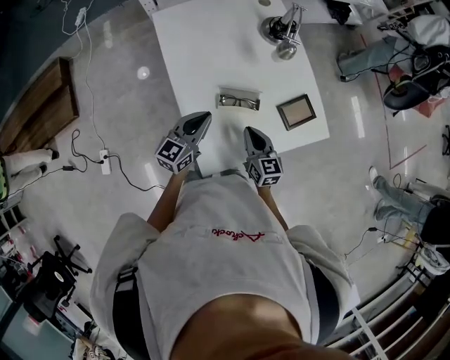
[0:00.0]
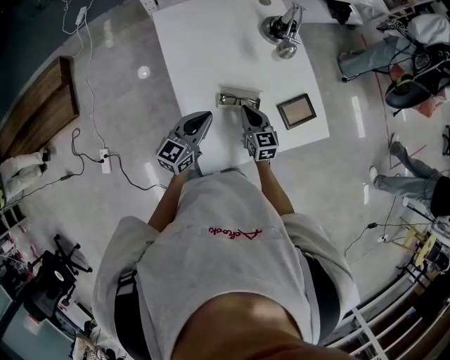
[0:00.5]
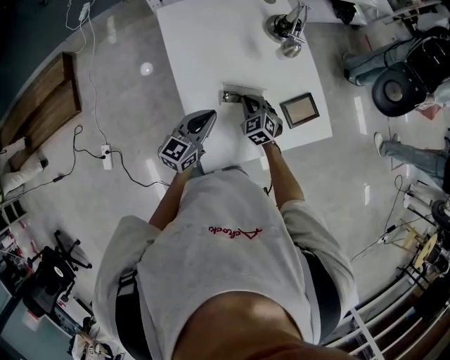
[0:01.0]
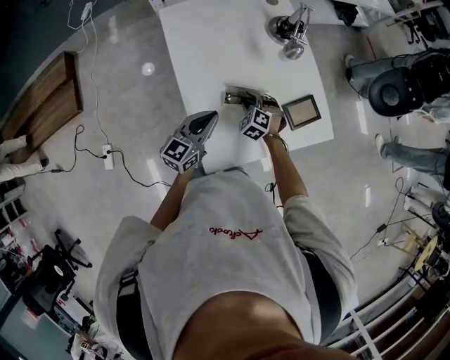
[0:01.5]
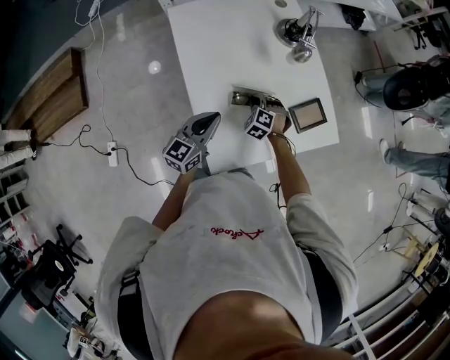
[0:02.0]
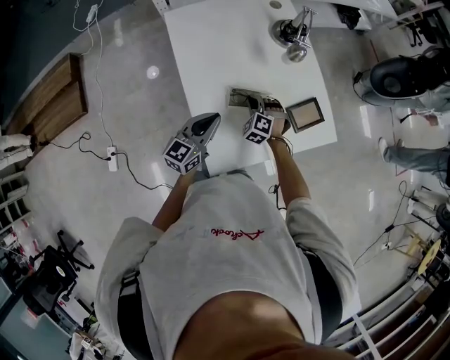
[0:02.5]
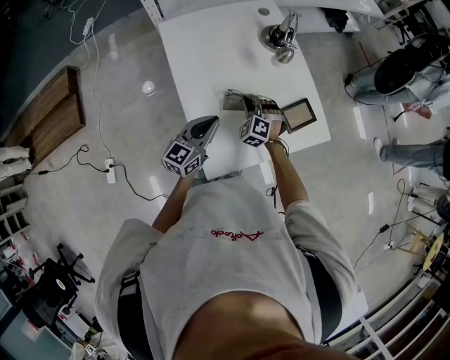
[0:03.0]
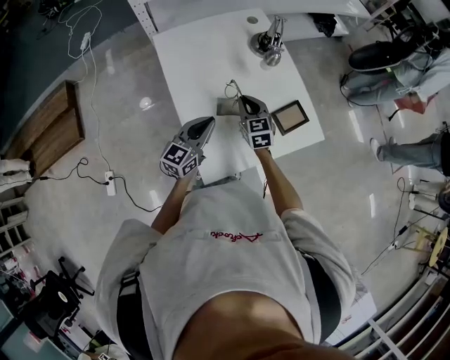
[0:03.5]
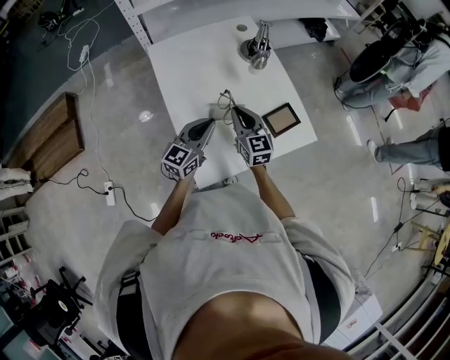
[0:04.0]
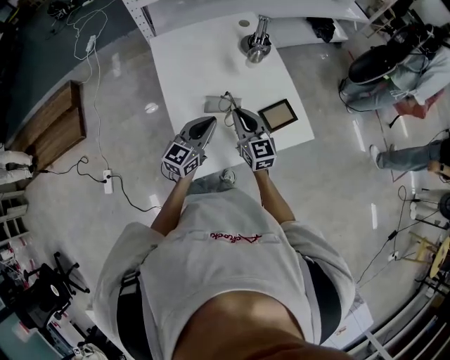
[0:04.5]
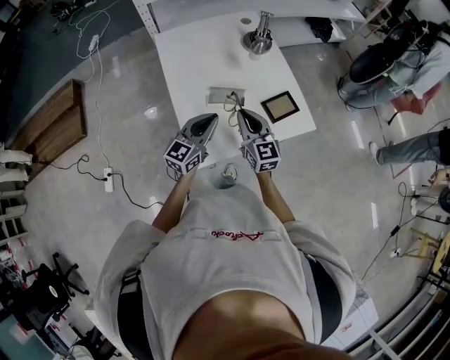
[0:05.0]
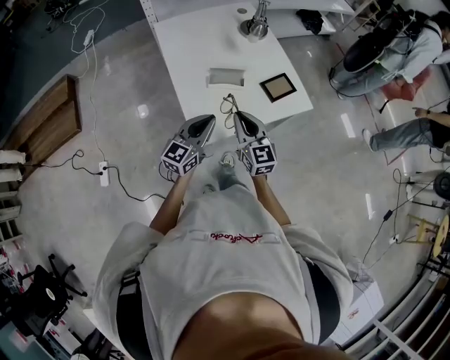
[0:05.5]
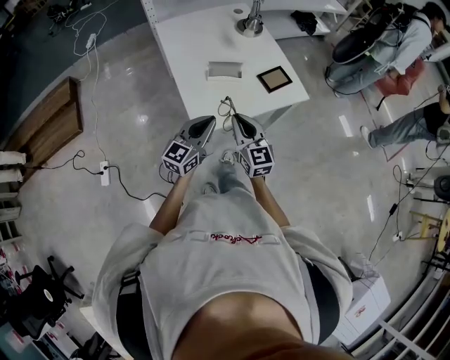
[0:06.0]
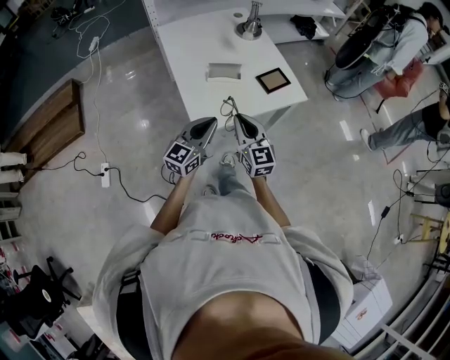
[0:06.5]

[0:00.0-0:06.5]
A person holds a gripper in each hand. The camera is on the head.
0:00.0 to 0:02.0: The right gripper travels downward and forward by approximately 15 cm, rotates around the line of its fingers by about 60 degrees, counterclockwise from behind, and opens, then closes once more.
0:02.0 to 0:04.5: The left gripper travels to the right by approximately 10 cm. Meanwhile the right gripper shifts about 20 cm upward, and tips its fingers upward by approximately 50 degrees.
0:04.5 to 0:06.5: Both grippers travel together backward, approximately 20 cm.

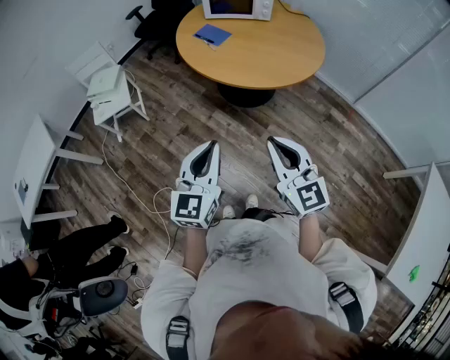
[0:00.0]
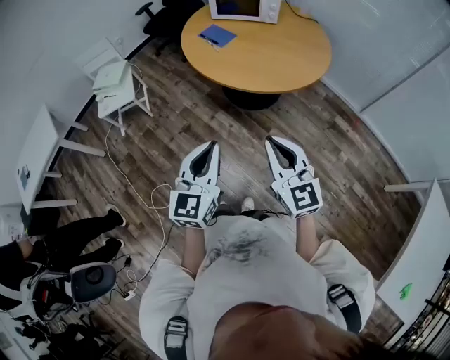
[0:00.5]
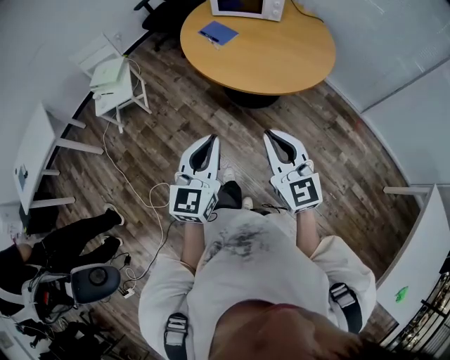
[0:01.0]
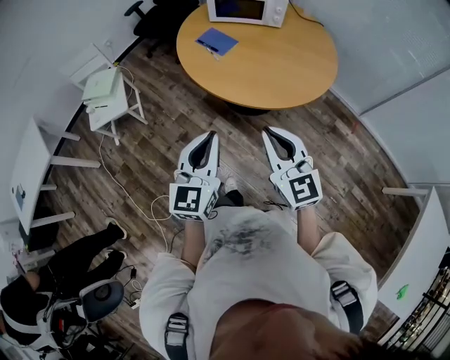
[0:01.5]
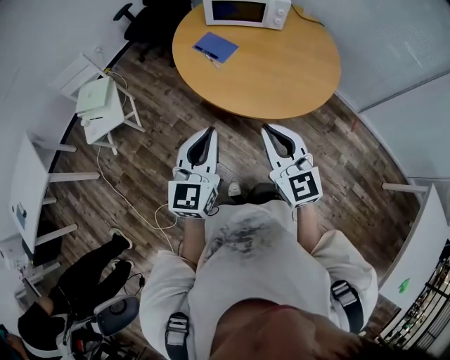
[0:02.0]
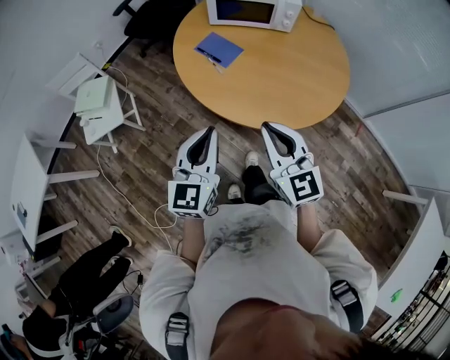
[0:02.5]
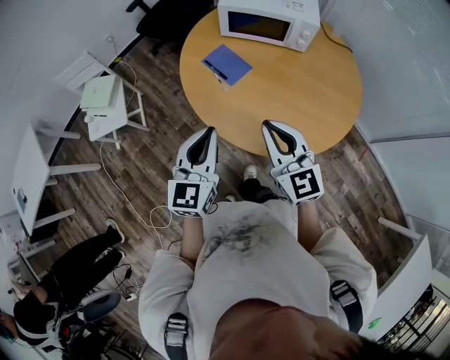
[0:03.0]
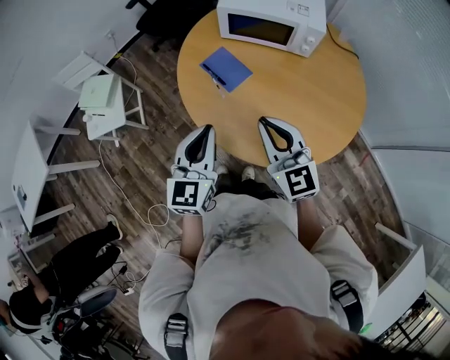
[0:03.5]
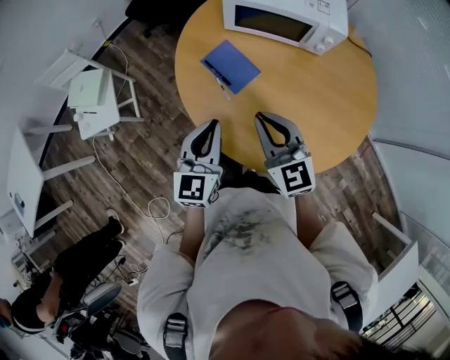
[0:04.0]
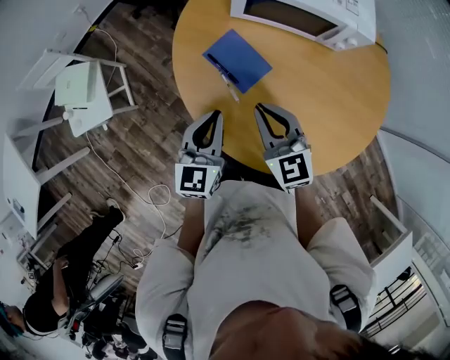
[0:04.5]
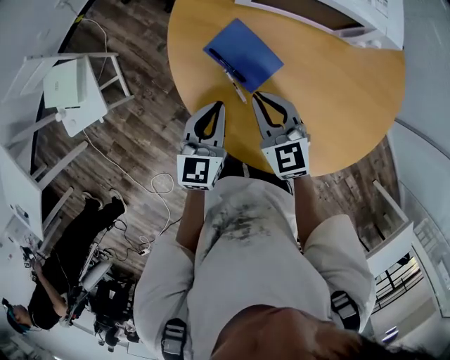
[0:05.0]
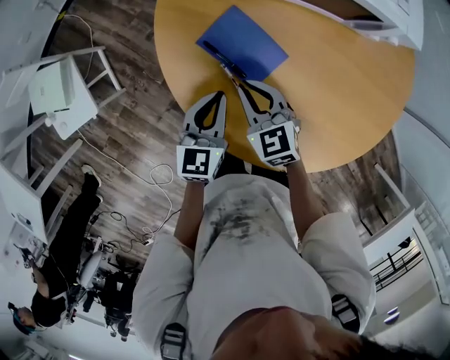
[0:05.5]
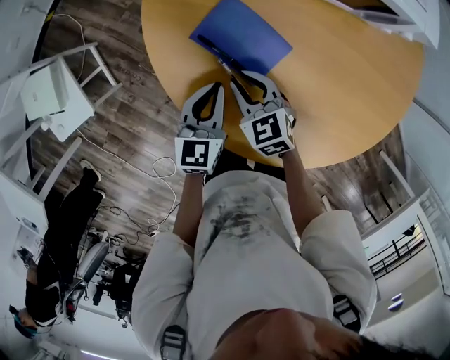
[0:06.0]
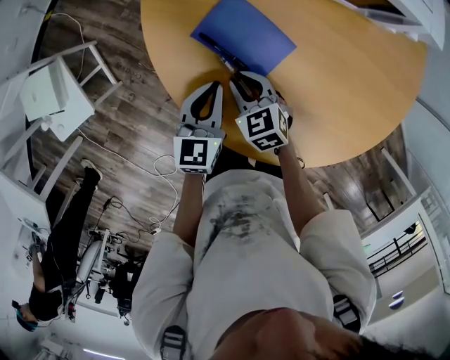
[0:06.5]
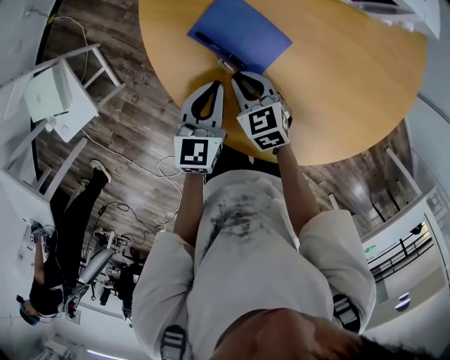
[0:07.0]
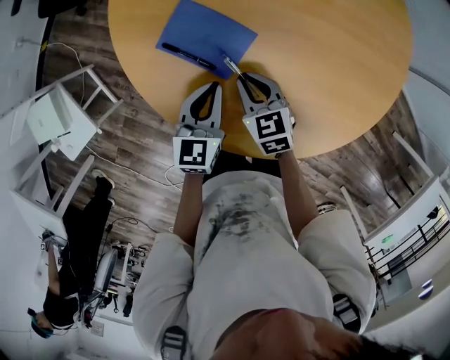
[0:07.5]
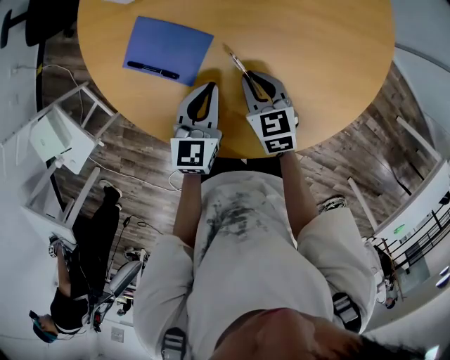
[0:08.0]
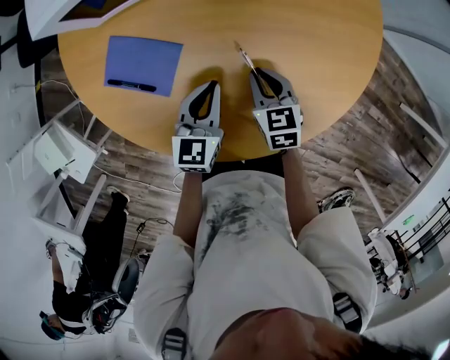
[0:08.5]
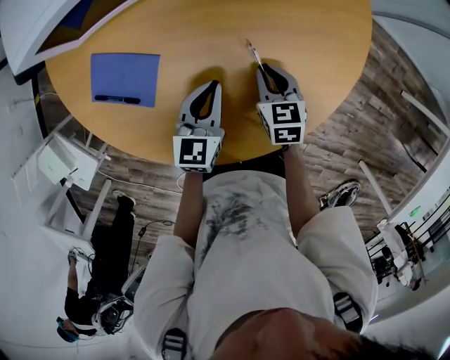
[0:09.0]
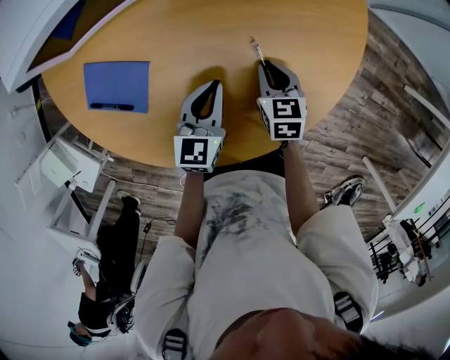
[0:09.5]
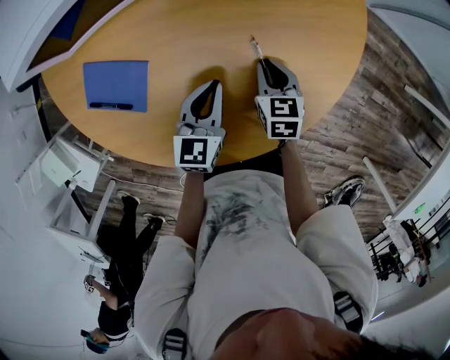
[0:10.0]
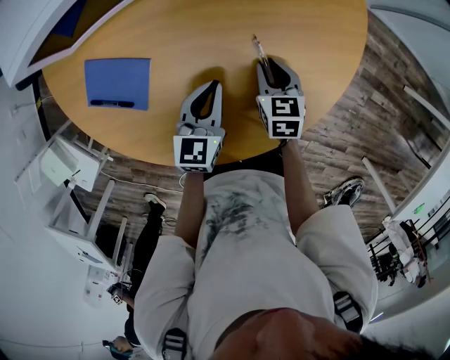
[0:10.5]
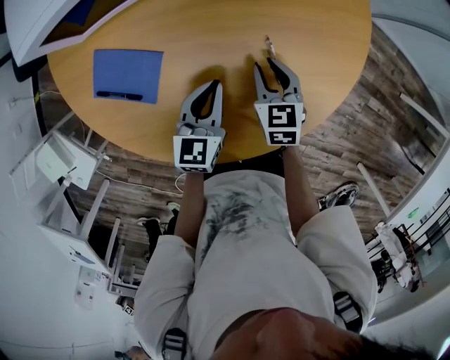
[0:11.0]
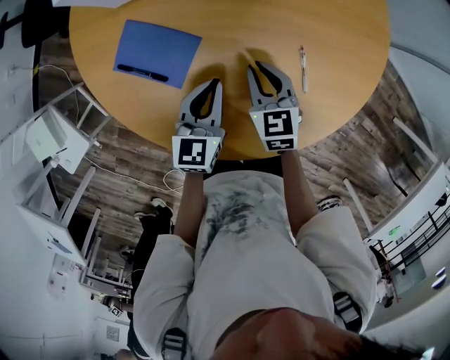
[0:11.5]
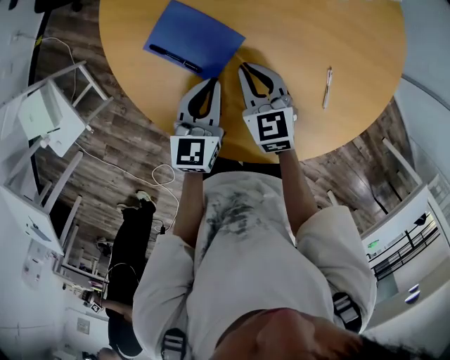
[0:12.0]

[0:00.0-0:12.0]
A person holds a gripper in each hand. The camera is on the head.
0:00.0 to 0:02.0: Both grippers travel together forward, about 25 cm.
0:02.0 to 0:04.0: The two grippers go approximately 35 cm forward.
0:04.0 to 0:06.0: Both grippers travel together downward and forward, approximately 30 cm. The right gripper tilts its fingers roughly 30 degrees downward. The left gripper swivels some 20 degrees.
0:06.0 to 0:08.0: Both grippers move to the right, some 15 cm. The right gripper rotates about 30 degrees.
0:08.0 to 0:10.0: The grippers both shift to the right by roughly 20 cm. The right gripper swivels approximately 20 degrees.
0:10.0 to 0:12.0: The right gripper ends up some 30 cm from where it was, and swivels about 40 degrees. The left gripper ends up about 20 cm from where it was, and rotates some 20 degrees.

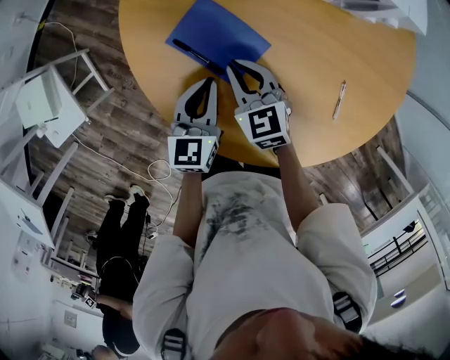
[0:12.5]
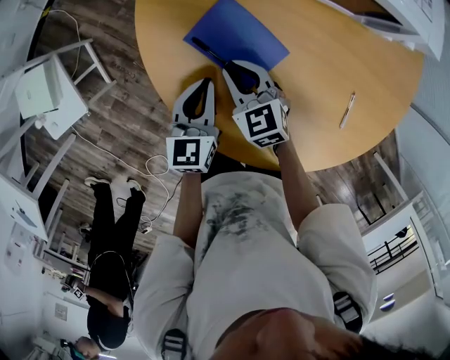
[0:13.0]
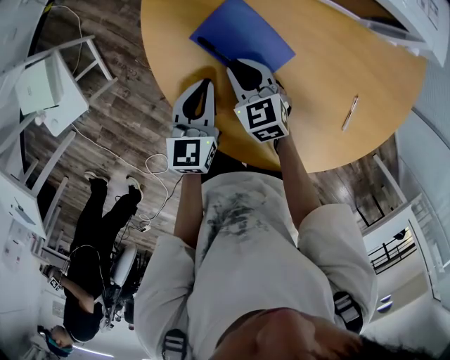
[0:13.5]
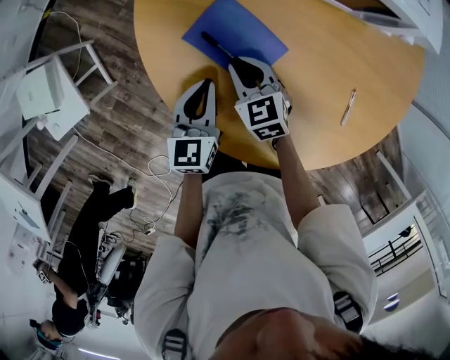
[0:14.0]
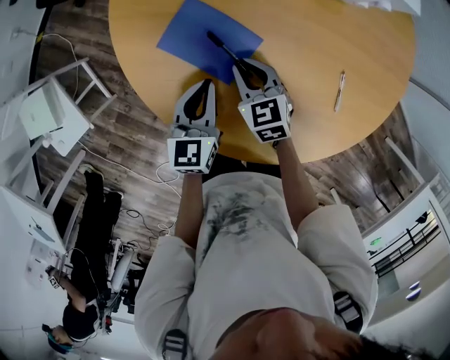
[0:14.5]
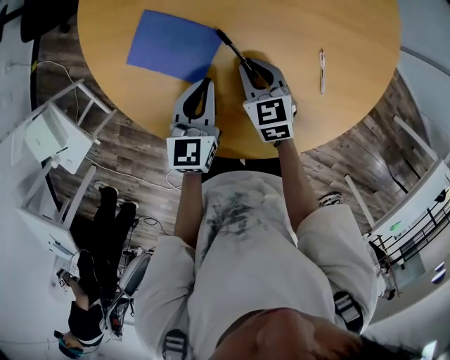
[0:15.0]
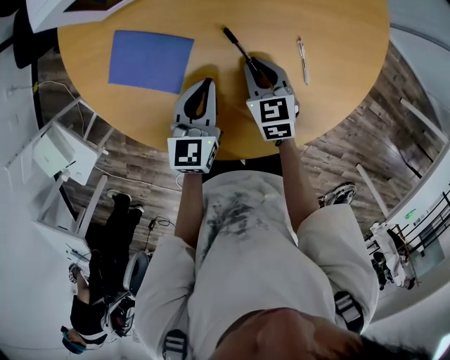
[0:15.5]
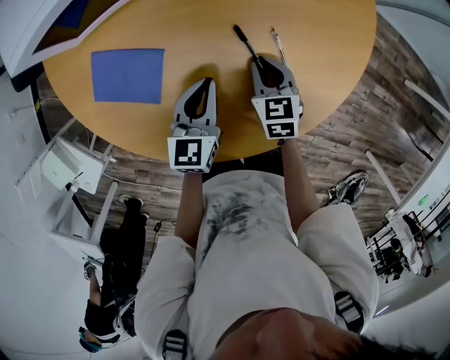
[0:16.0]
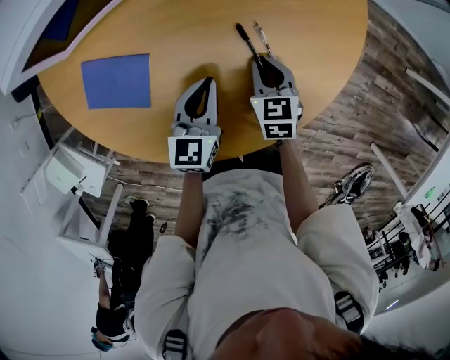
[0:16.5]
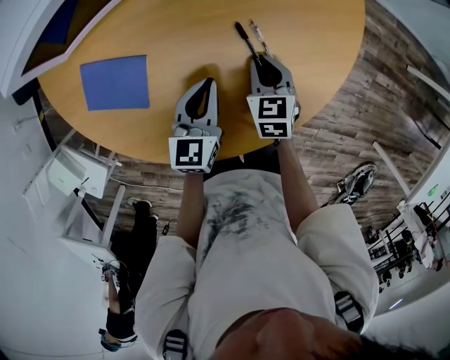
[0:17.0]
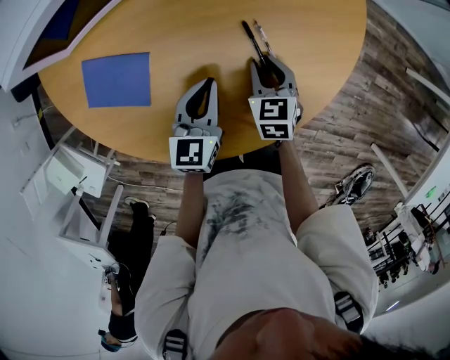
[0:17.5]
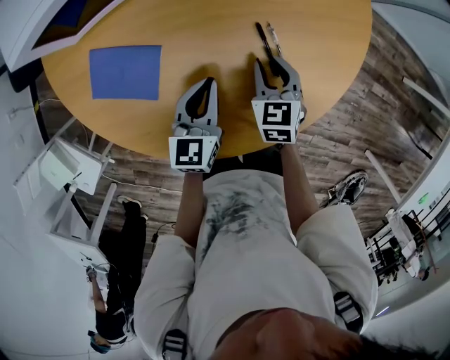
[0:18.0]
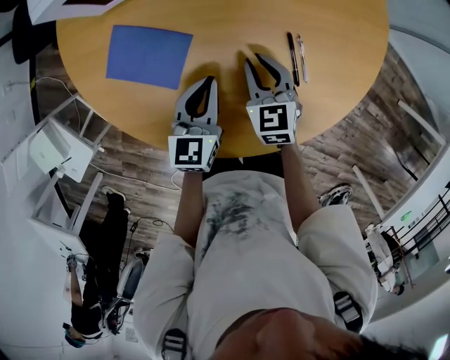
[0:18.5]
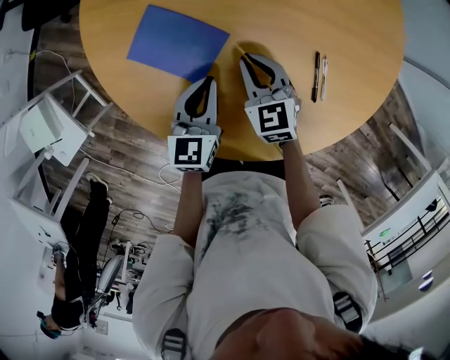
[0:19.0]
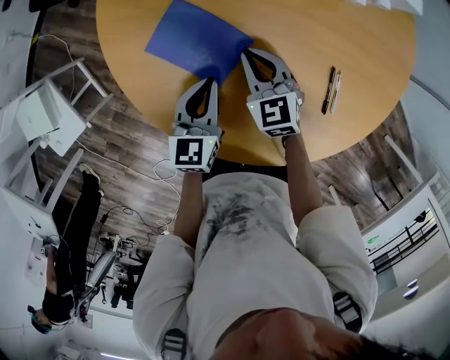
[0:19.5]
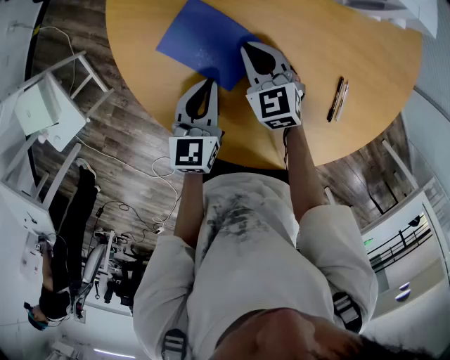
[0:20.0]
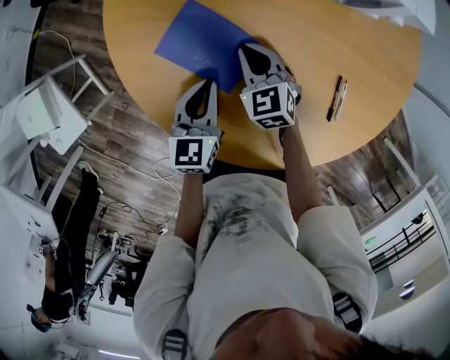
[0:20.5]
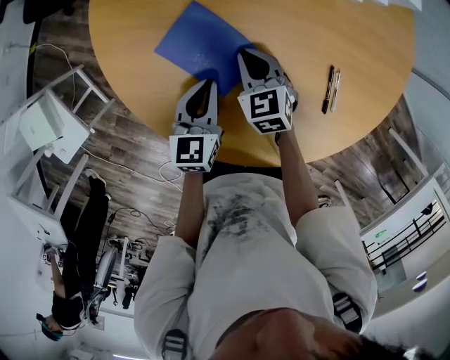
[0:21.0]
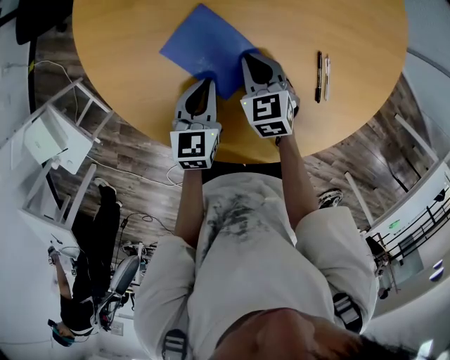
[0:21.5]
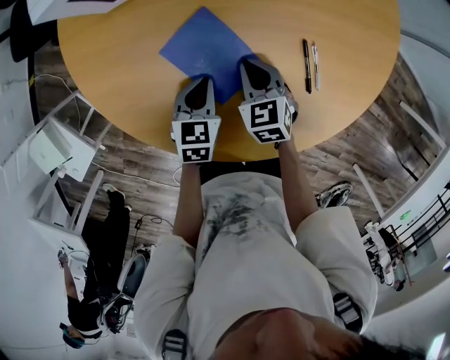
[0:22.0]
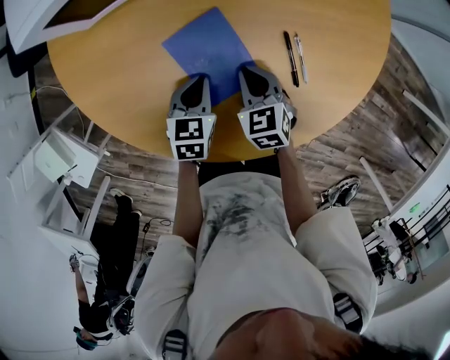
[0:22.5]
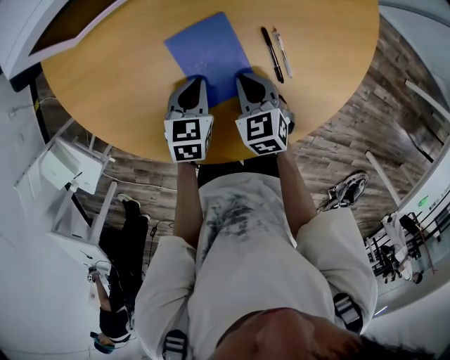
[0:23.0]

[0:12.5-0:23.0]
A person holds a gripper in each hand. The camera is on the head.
0:12.5 to 0:14.5: The right gripper ends up about 5 cm from where it was.
0:14.5 to 0:16.5: The right gripper changes place by approximately 30 cm, and rotates approximately 40 degrees. The left gripper shifts by approximately 25 cm, and changes its angle by roughly 30 degrees.
0:16.5 to 0:19.0: The left gripper ends up about 15 cm from where it was; the right gripper shifts by about 25 cm, and swivels roughly 40 degrees.
0:19.0 to 0:21.0: The right gripper shifts by roughly 5 cm.
0:21.0 to 0:23.0: The right gripper shifts approximately 20 cm to the right and backward. Meanwhile the left gripper goes some 15 cm to the right, and turns by roughly 30 degrees.
